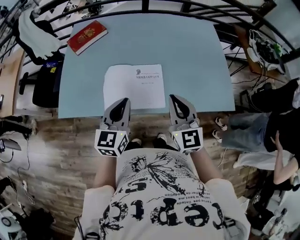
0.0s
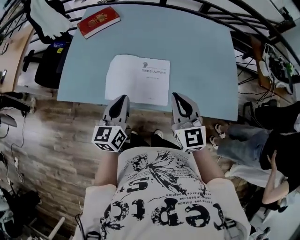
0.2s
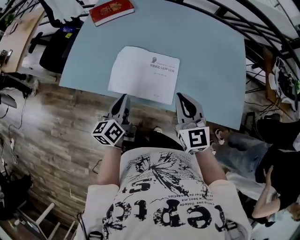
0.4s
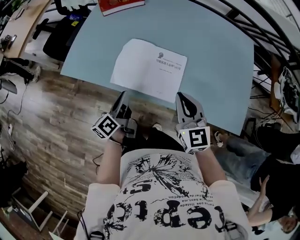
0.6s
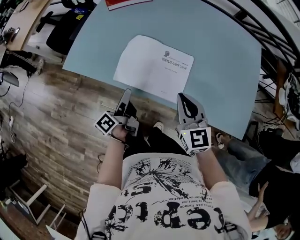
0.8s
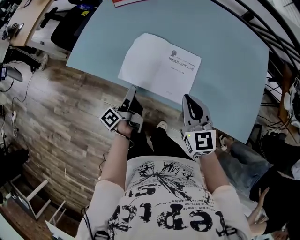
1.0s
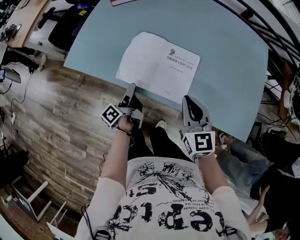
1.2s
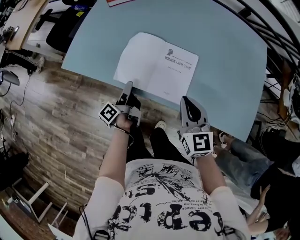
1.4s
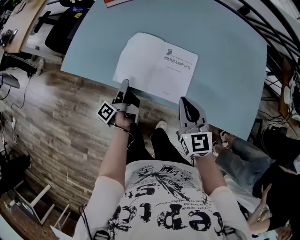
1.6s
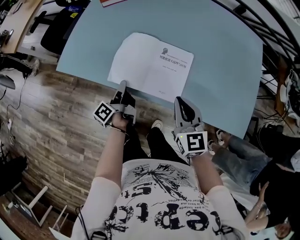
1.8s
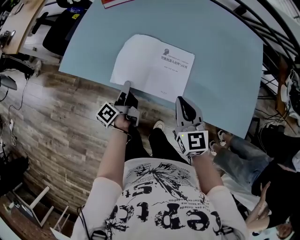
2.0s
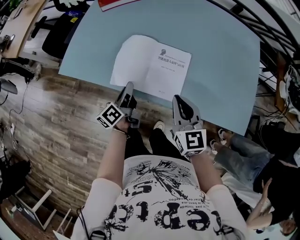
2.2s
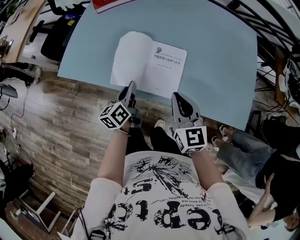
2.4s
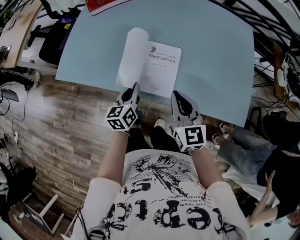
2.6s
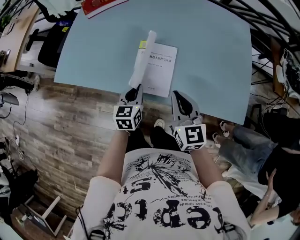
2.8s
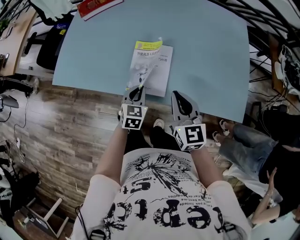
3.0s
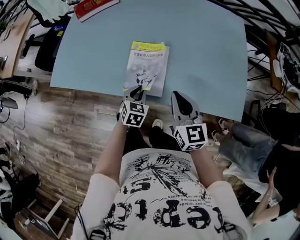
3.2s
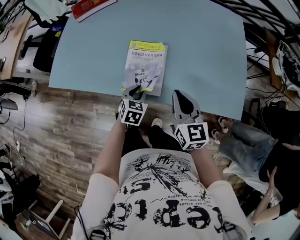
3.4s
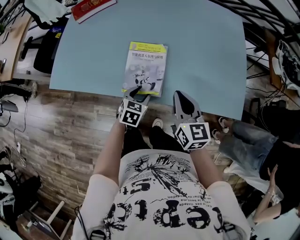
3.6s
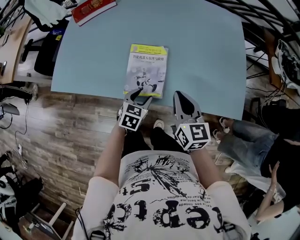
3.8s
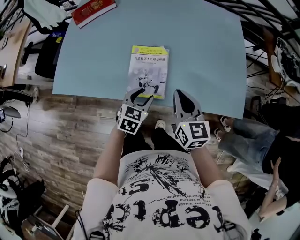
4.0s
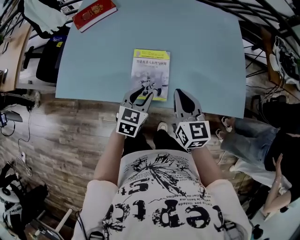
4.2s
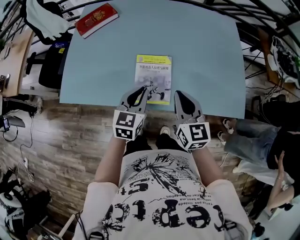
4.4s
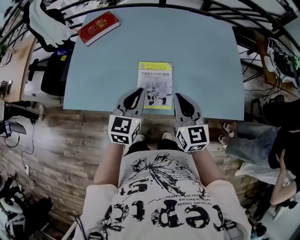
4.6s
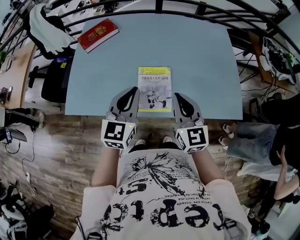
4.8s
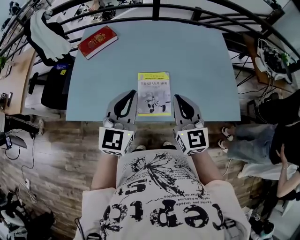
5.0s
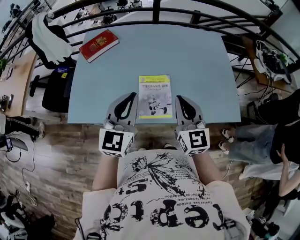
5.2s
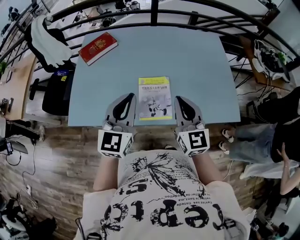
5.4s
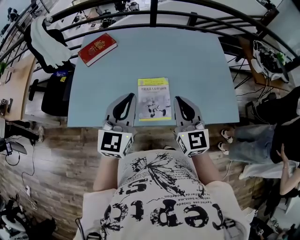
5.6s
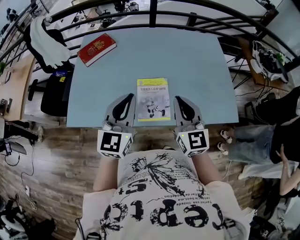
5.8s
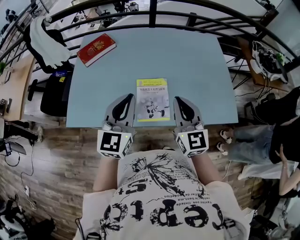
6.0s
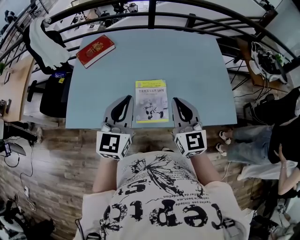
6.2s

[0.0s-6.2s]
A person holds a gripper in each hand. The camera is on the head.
0.0s to 1.6s: The left gripper shifts approximately 25 cm downward, rotates around the line of its fingers by about 90 degrees, counterclockwise from behind, and opens, while the right gripper goes about 15 cm downward, and turns by approximately 20 degrees.
1.6s to 3.2s: The right gripper moves to the right, some 10 cm. Meanwhile the left gripper is displaced to the right by roughly 20 cm, rolls clockwise, seen from behind, by approximately 100 degrees, and closes its fingers.
3.2s to 4.6s: The left gripper travels upward by about 20 cm, changes its angle by some 30 degrees, and opens, then closes once more, while the right gripper shifts about 10 cm upward and to the left.
4.6s to 6.2s: The left gripper goes roughly 10 cm upward. Meanwhile the right gripper heads upward, covering some 10 cm.

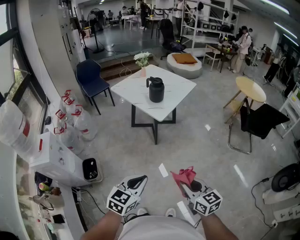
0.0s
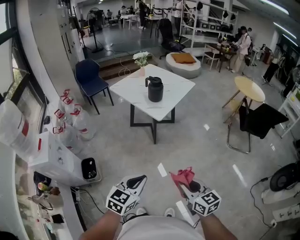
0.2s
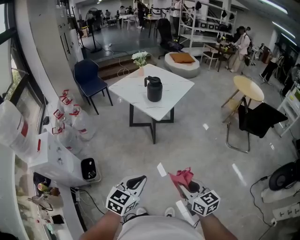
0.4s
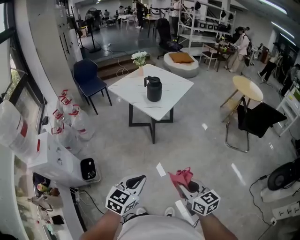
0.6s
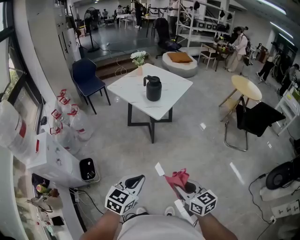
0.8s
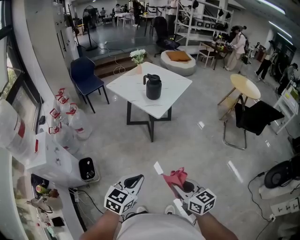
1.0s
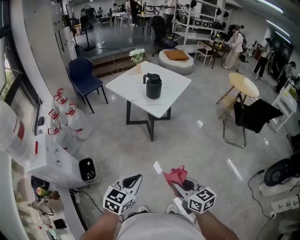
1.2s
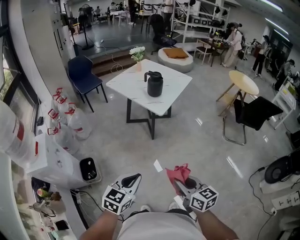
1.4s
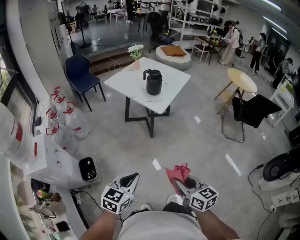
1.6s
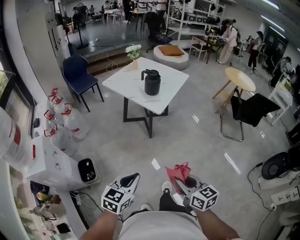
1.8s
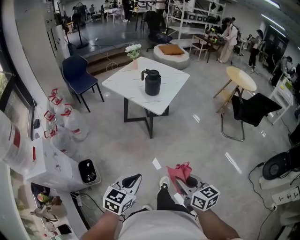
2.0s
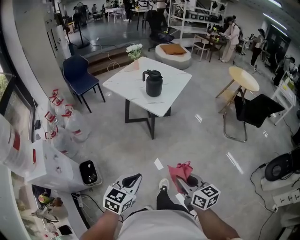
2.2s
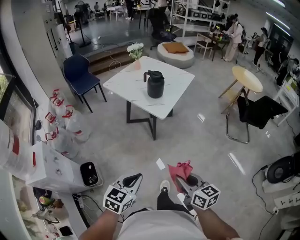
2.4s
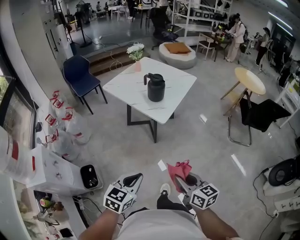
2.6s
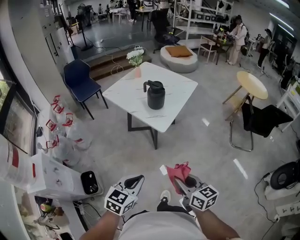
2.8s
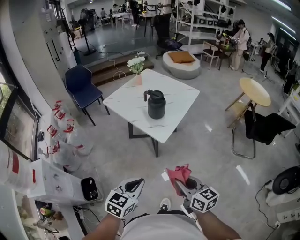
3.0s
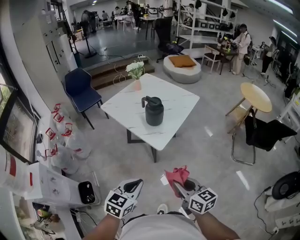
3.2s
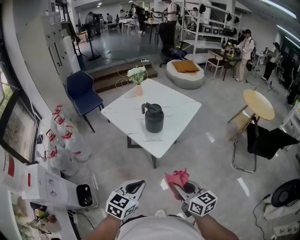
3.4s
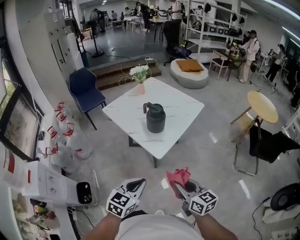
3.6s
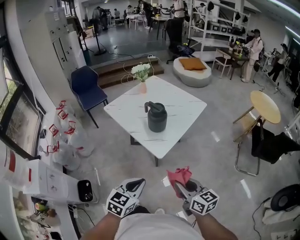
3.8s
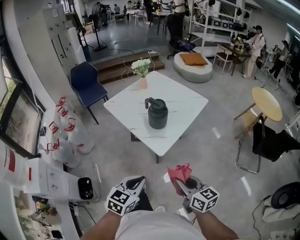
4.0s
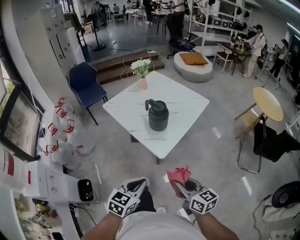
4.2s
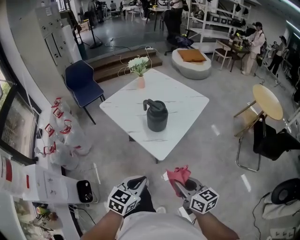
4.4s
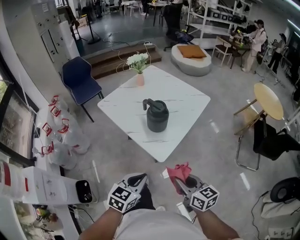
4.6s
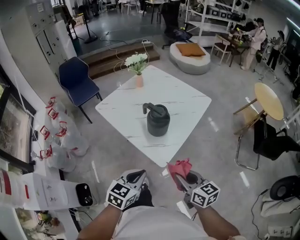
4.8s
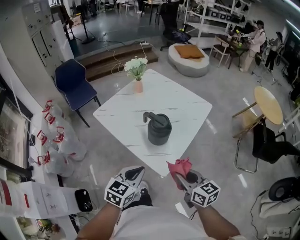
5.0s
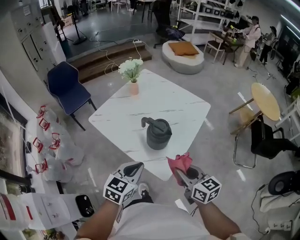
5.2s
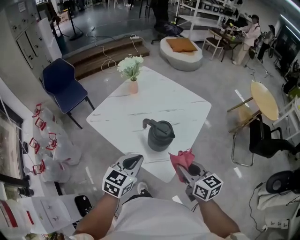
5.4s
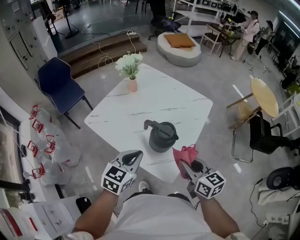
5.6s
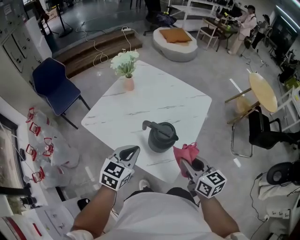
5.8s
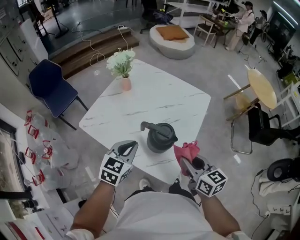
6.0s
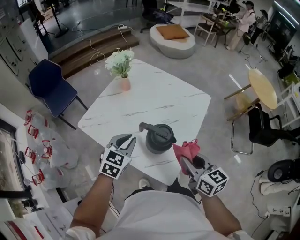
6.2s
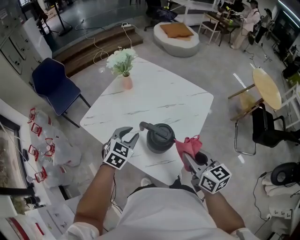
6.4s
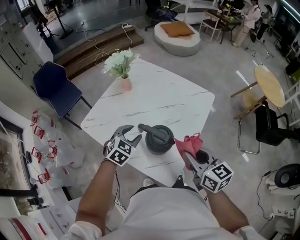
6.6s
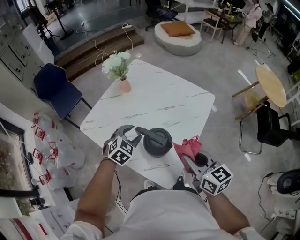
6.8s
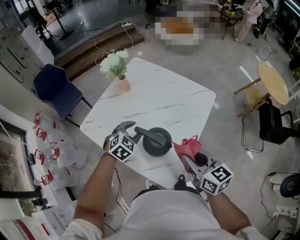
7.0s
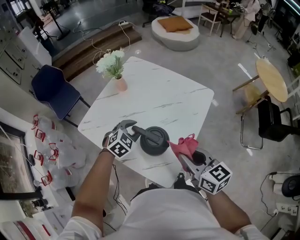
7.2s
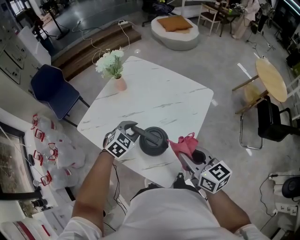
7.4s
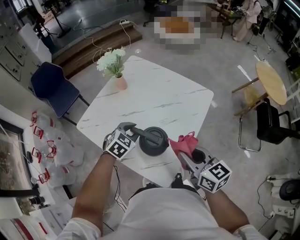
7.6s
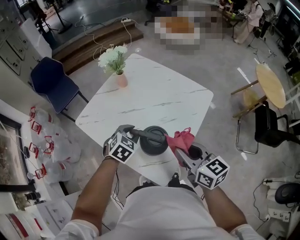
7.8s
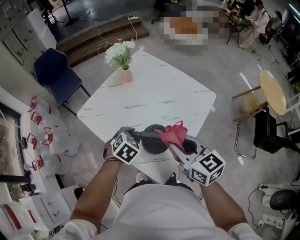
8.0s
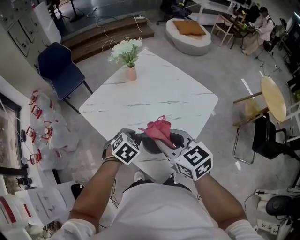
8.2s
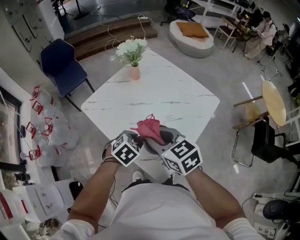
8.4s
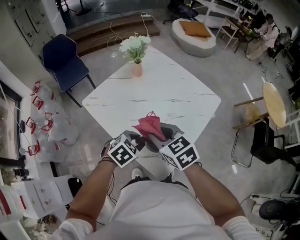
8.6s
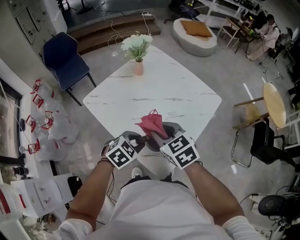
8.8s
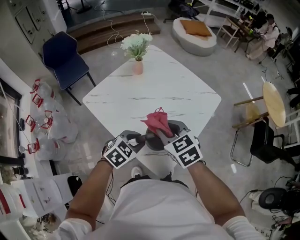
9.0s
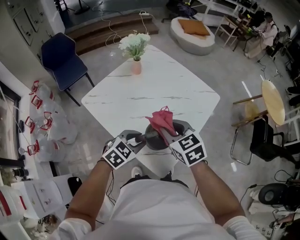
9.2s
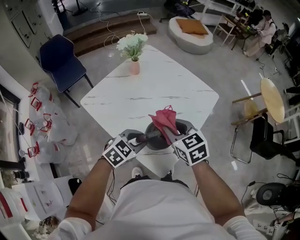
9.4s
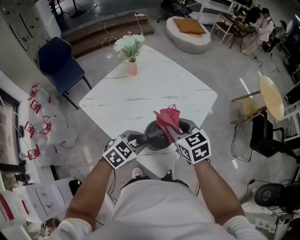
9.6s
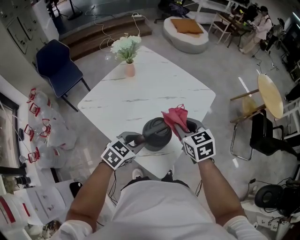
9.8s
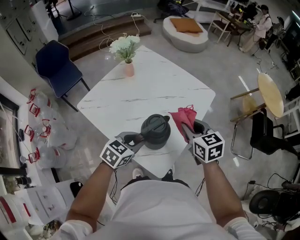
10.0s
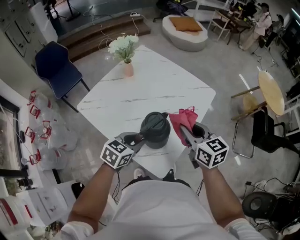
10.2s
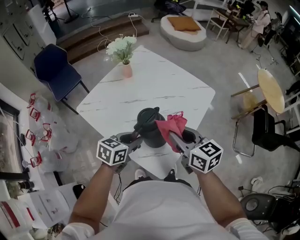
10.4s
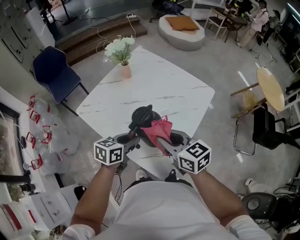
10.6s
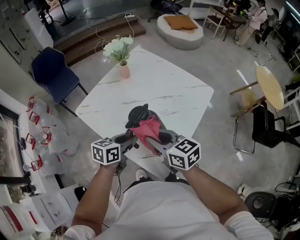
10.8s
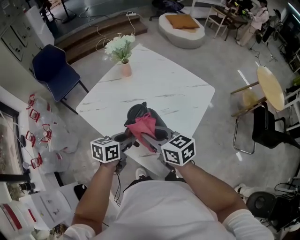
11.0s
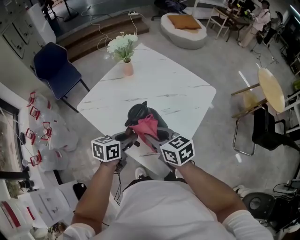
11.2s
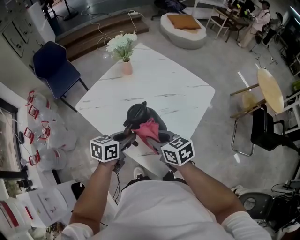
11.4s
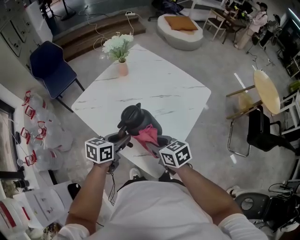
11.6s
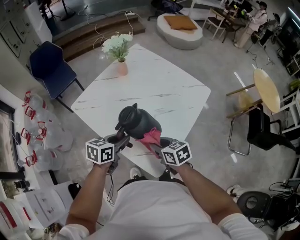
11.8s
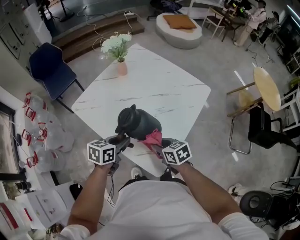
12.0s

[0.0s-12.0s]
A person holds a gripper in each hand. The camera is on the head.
0.0s to 1.6s: The grippers both shift to the left by some 10 cm.
1.6s to 3.0s: The grippers both shift forward by about 25 cm.
3.0s to 4.4s: Both grippers move forward, some 15 cm.
4.4s to 6.0s: Both grippers move forward, some 35 cm.
6.0s to 7.6s: The right gripper moves forward, approximately 5 cm. The left gripper goes some 15 cm forward, downward and to the right, rotates roughly 20 degrees, and opens up.
7.6s to 9.0s: The left gripper heads backward, covering approximately 15 cm. Meanwhile the right gripper moves to the left, approximately 15 cm, and changes its angle by approximately 40 degrees.
9.0s to 10.4s: The right gripper goes about 10 cm to the right, and swivels roughly 30 degrees. Meanwhile the left gripper swivels roughly 30 degrees.
10.4s to 12.0s: The left gripper shifts by some 5 cm. Meanwhile the right gripper moves downward, approximately 15 cm, and swivels about 30 degrees.

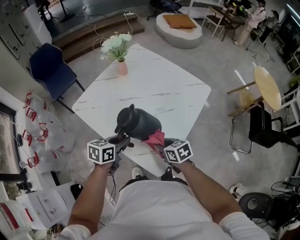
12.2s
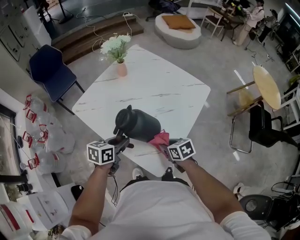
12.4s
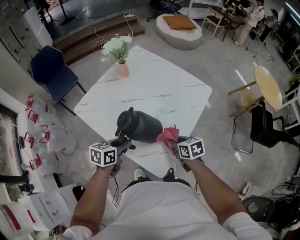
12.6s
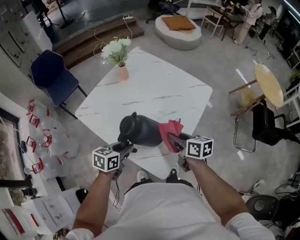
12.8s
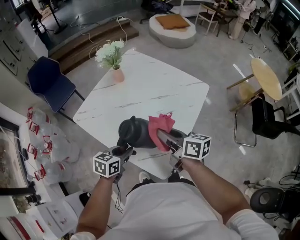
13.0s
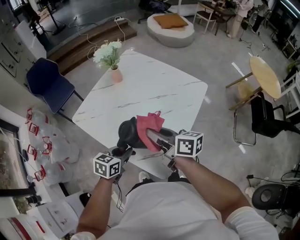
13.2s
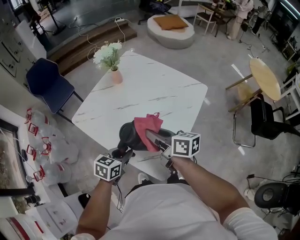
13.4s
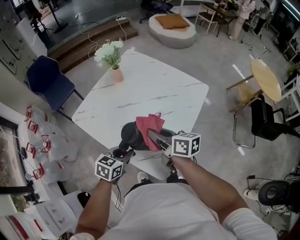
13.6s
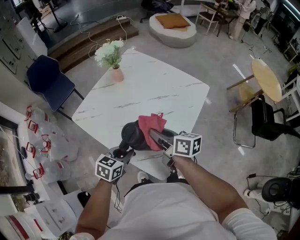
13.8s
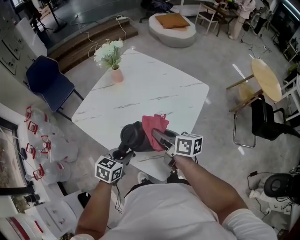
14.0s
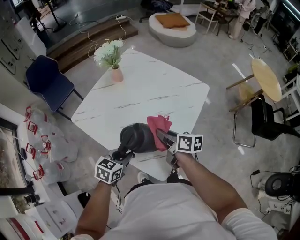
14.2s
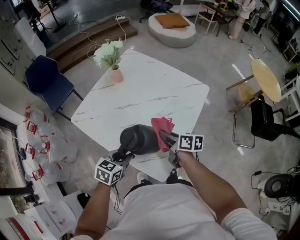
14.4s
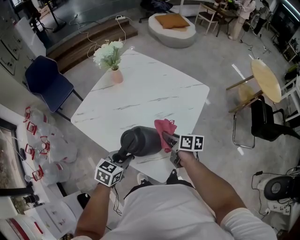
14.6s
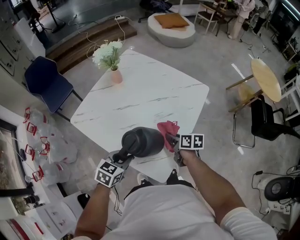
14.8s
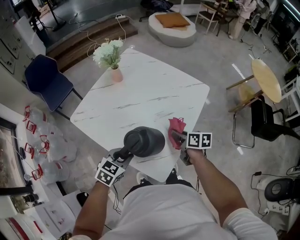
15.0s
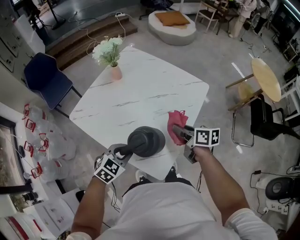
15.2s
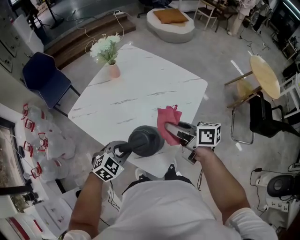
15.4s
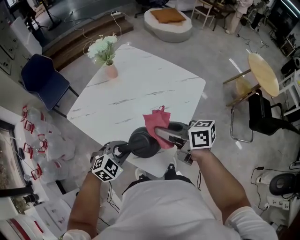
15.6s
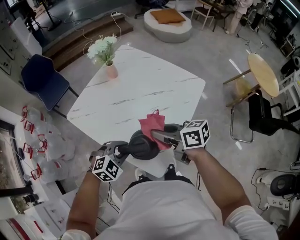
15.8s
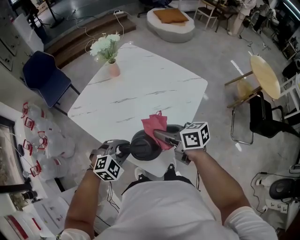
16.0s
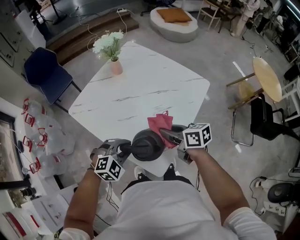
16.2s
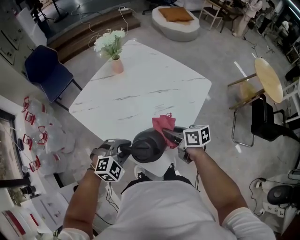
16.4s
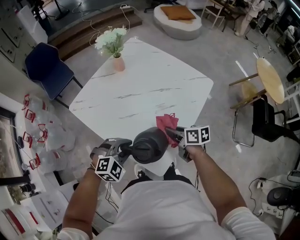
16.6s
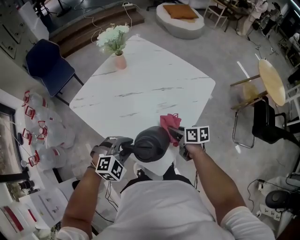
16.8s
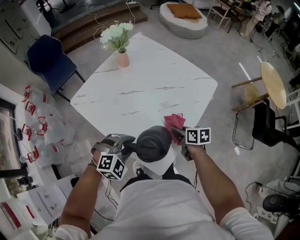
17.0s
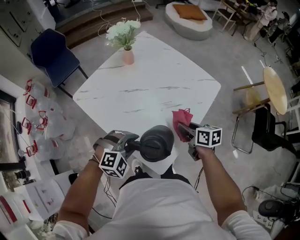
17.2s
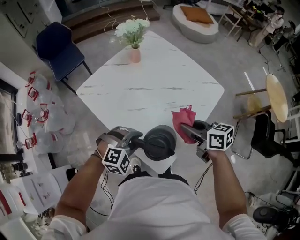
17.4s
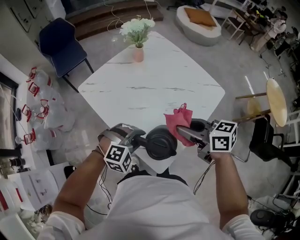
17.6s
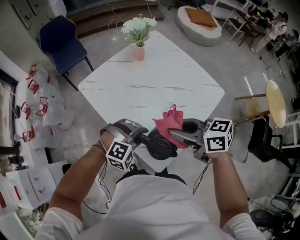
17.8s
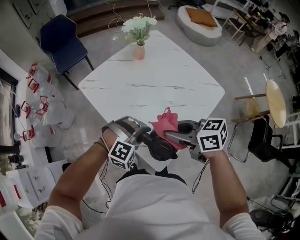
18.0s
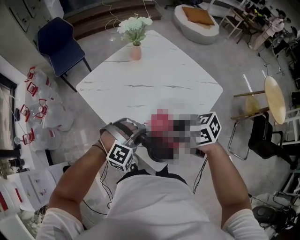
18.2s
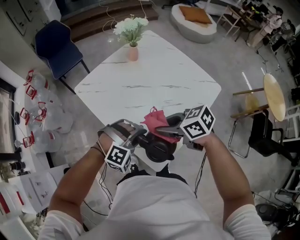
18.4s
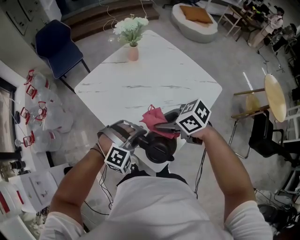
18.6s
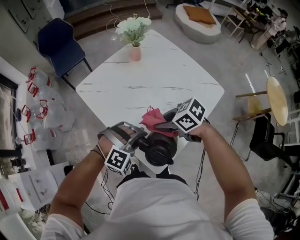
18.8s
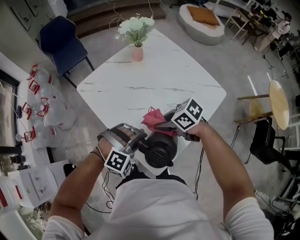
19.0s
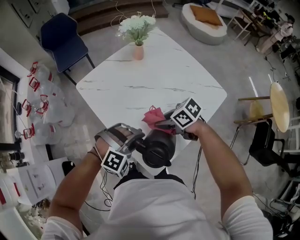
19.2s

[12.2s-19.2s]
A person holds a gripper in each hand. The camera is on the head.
12.2s to 13.6s: The right gripper shifts roughly 15 cm upward and forward, and changes its angle by approximately 40 degrees.
13.6s to 15.0s: The right gripper travels to the right and downward by approximately 20 cm, and turns by some 20 degrees.
15.0s to 16.4s: The left gripper twists roughly 40 degrees clockwise, seen from behind. Meanwhile the right gripper travels to the left by about 5 cm, and travels upward and back again, some 15 cm each way.
16.4s to 17.8s: The right gripper shifts about 15 cm upward, and turns by approximately 30 degrees.
17.8s to 19.2s: The right gripper shifts about 15 cm downward, and rotates roughly 30 degrees.
